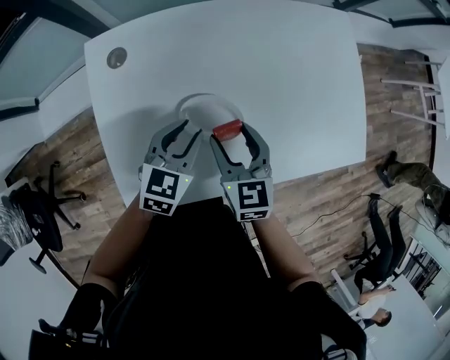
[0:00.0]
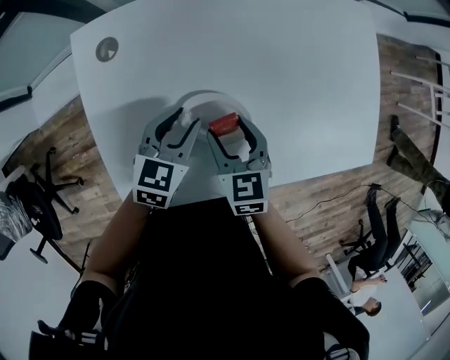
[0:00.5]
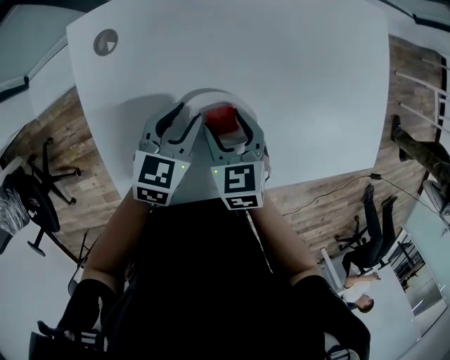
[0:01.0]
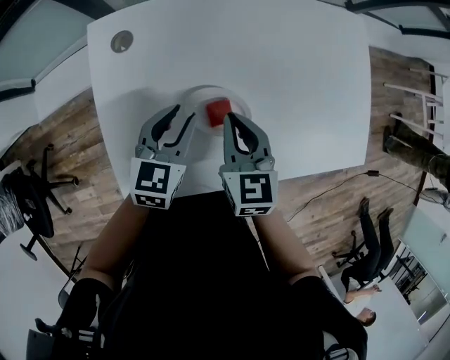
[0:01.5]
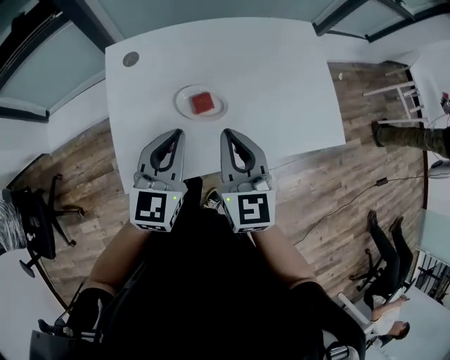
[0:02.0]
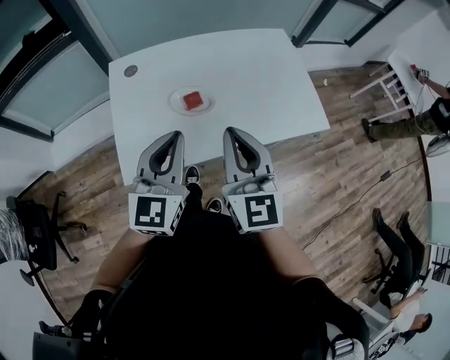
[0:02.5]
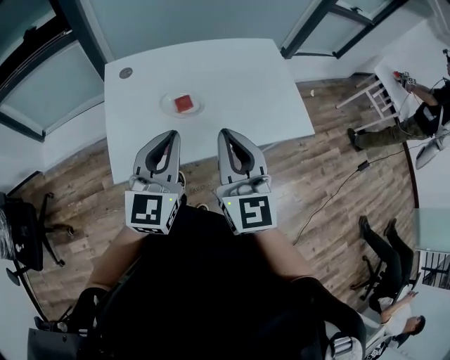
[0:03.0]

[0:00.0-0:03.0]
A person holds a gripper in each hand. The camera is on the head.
0:00.0 to 0:01.5: The right gripper moves about 5 cm downward and comes back, and closes up.
0:01.5 to 0:03.0: The grippers both shift backward and upward by approximately 30 cm. The left gripper angles its fingers upward, by about 30 degrees, and closes its fingers. Meanwhile the right gripper tilts its fingers some 30 degrees upward.

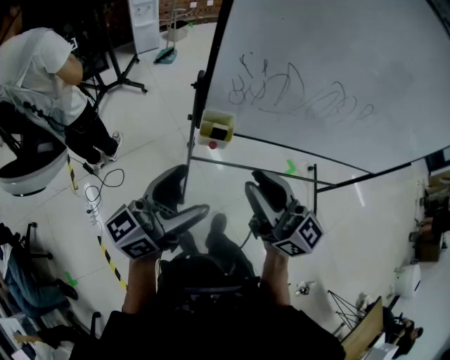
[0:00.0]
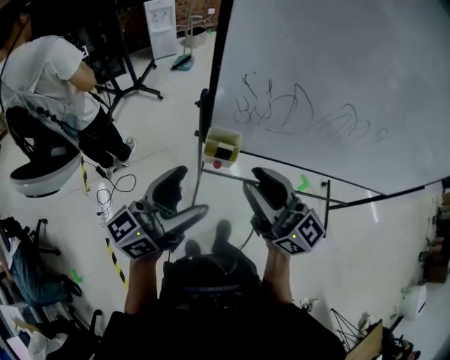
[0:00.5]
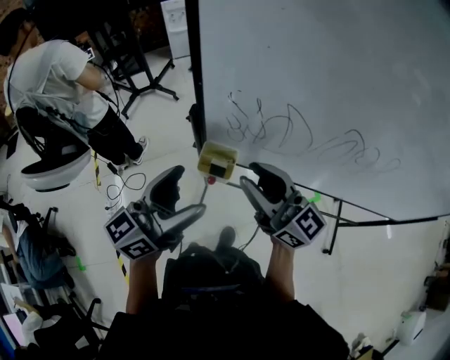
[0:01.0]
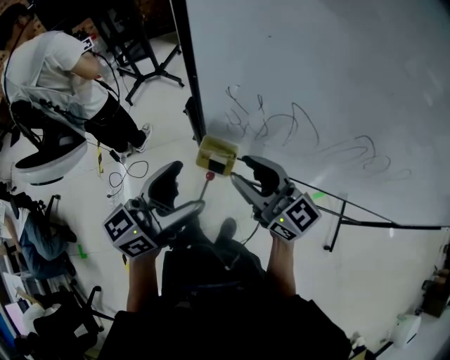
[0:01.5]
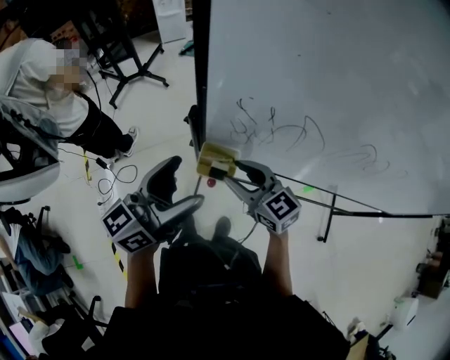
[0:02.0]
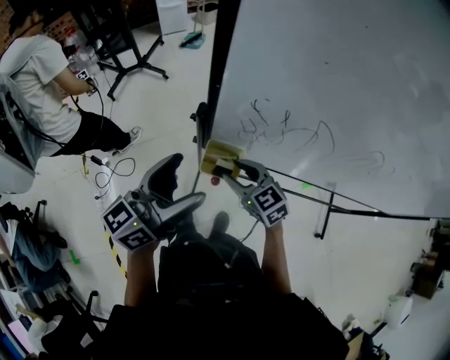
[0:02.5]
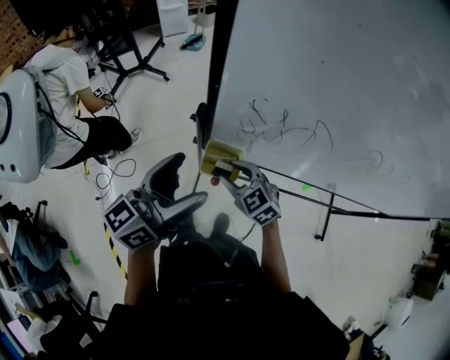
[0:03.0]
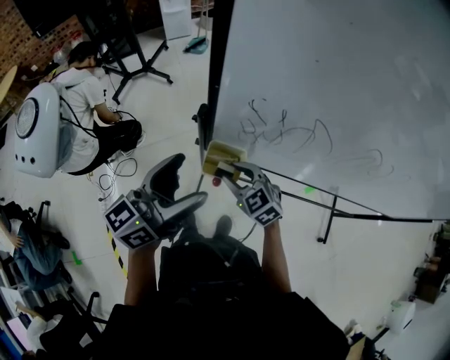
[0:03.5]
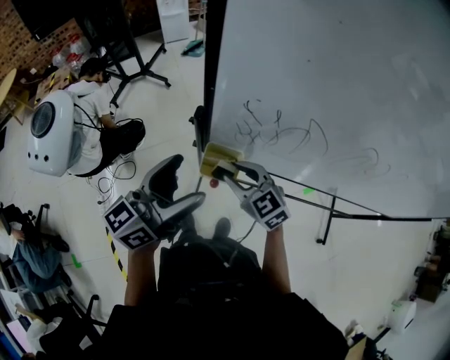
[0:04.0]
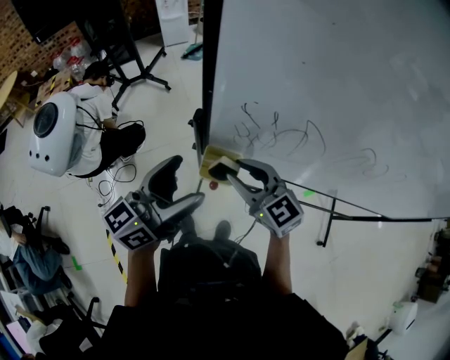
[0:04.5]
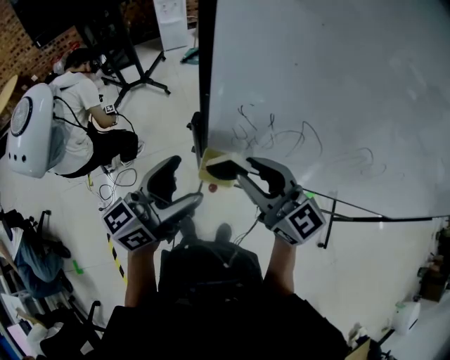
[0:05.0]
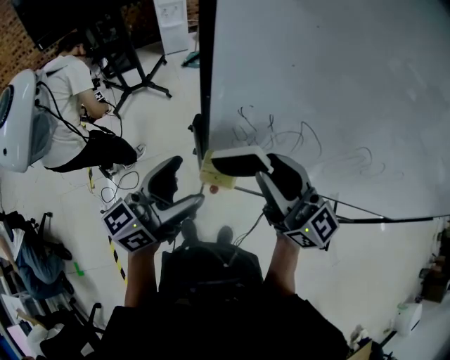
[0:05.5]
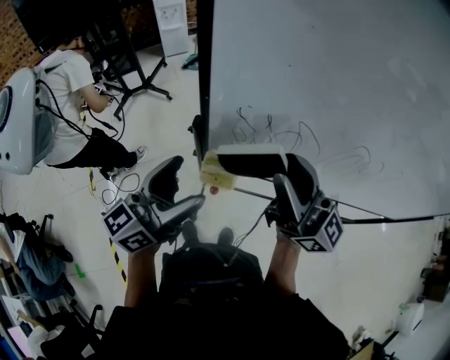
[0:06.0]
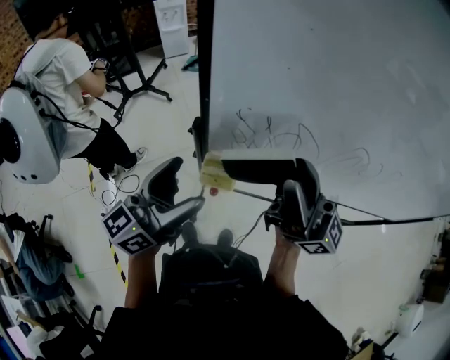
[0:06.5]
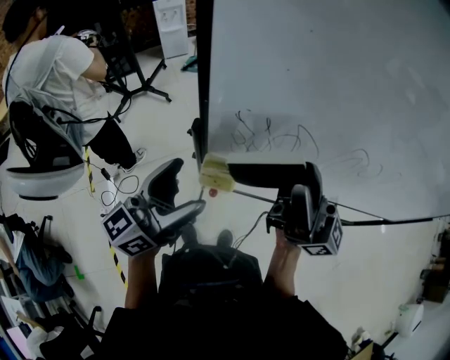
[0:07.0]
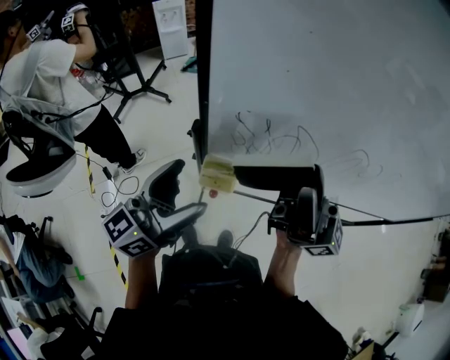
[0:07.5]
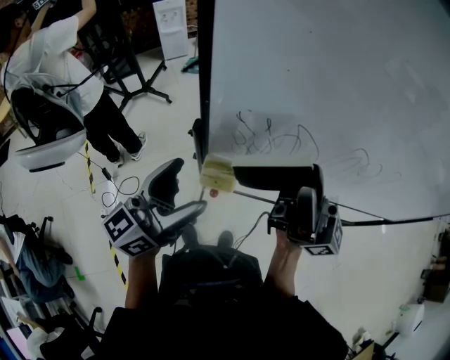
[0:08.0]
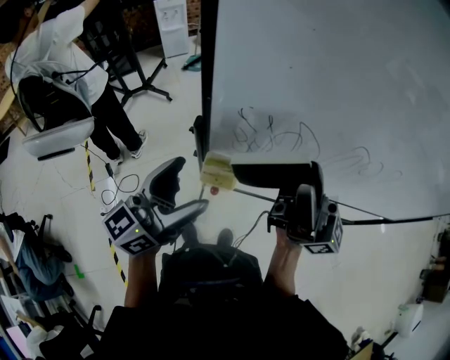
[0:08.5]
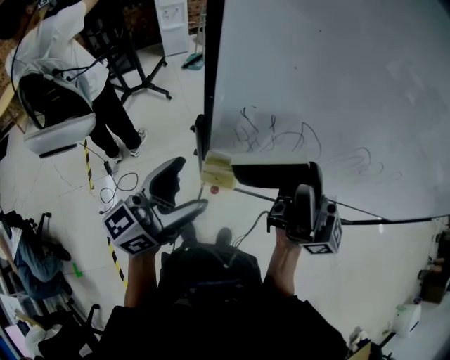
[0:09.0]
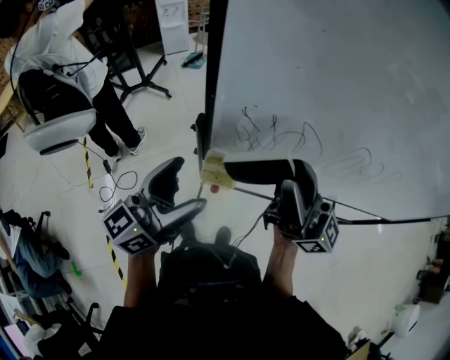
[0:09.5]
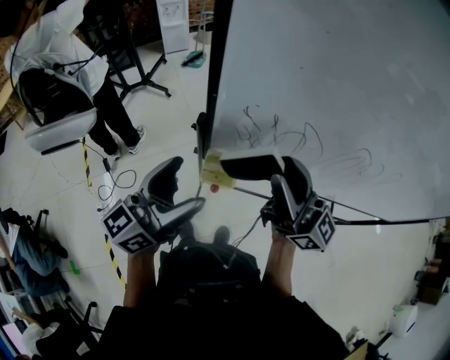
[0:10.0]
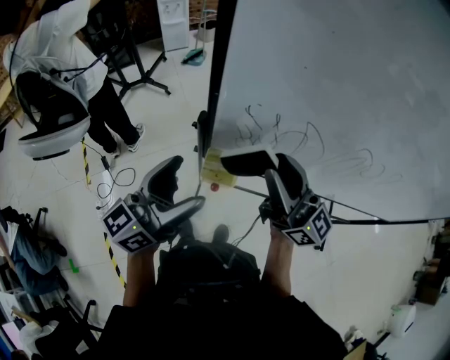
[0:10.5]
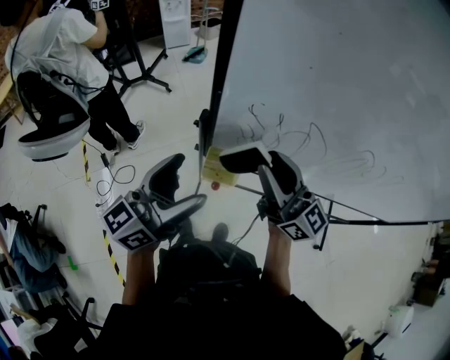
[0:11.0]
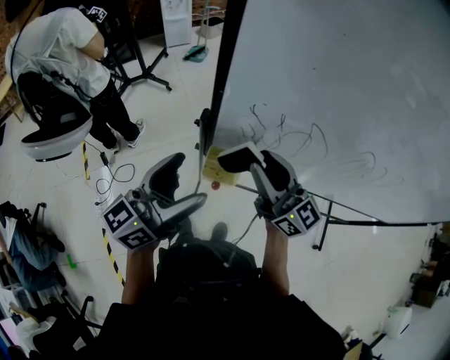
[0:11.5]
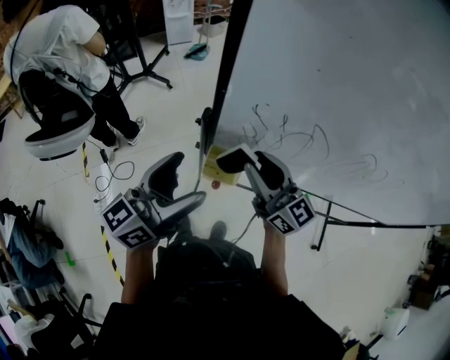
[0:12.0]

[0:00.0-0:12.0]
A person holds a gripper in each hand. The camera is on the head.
0:00.0 to 0:02.0: The left gripper travels forward by approximately 15 cm; the right gripper travels forward and downward by some 25 cm, and angles its fingers downward, by about 30 degrees.
0:04.0 to 0:06.0: The right gripper goes about 25 cm upward, and angles its fingers upward, by about 60 degrees.
0:06.0 to 0:08.0: The right gripper changes place by roughly 5 cm.
0:08.0 to 0:10.0: The right gripper shifts some 5 cm downward.
0:10.0 to 0:12.0: The right gripper travels downward by approximately 10 cm, and changes its angle by about 20 degrees.

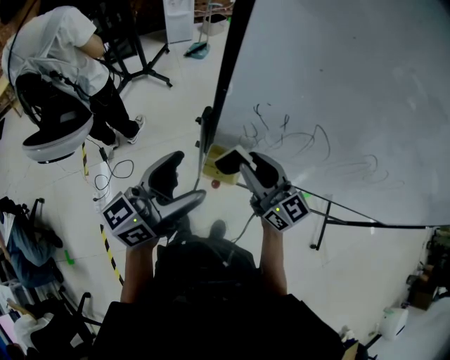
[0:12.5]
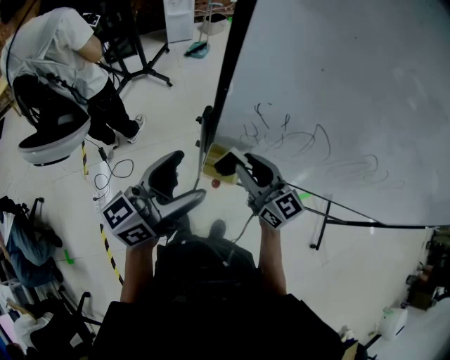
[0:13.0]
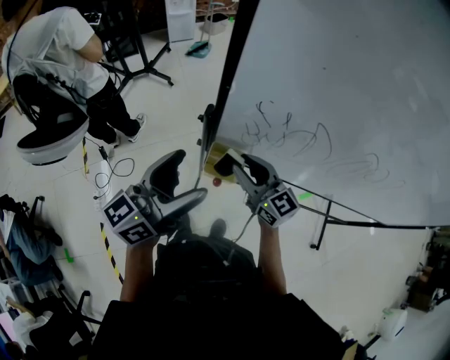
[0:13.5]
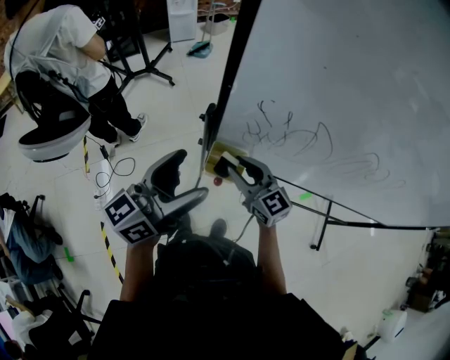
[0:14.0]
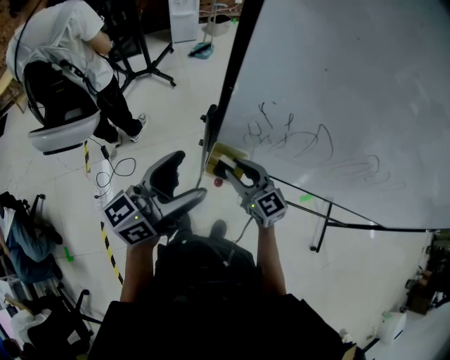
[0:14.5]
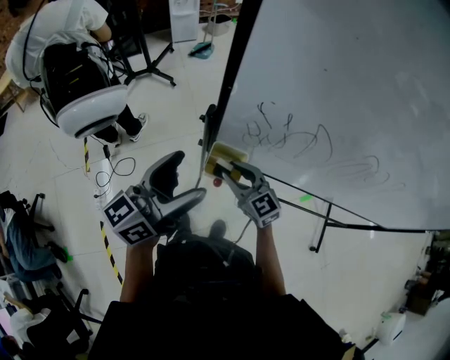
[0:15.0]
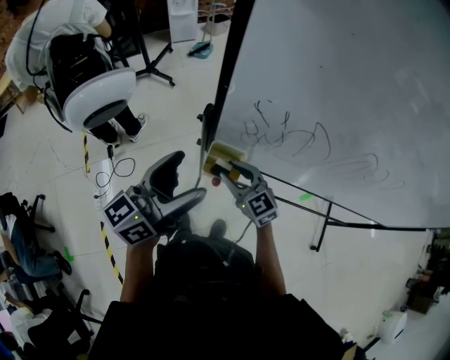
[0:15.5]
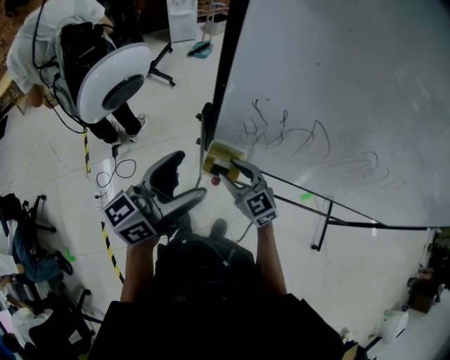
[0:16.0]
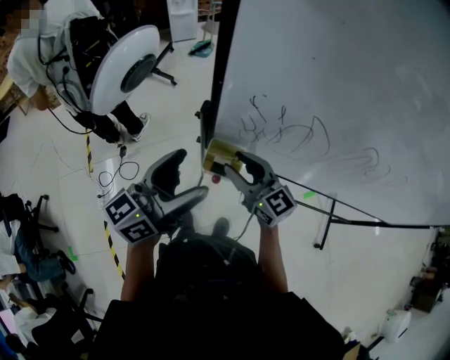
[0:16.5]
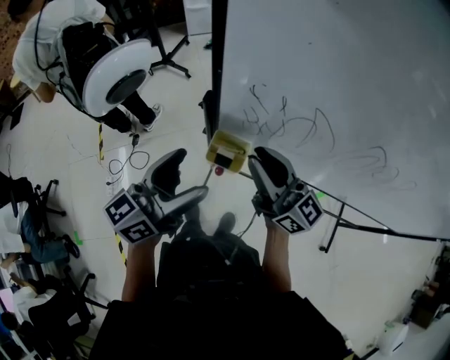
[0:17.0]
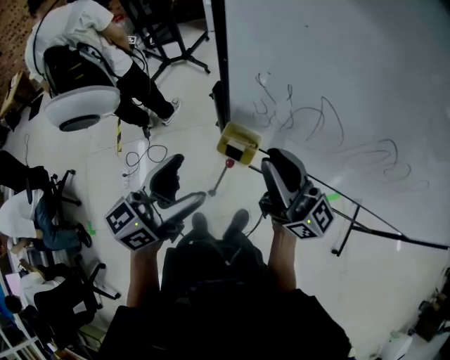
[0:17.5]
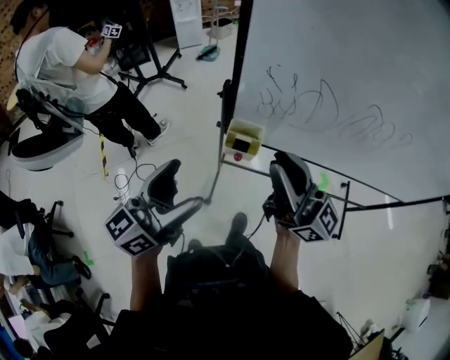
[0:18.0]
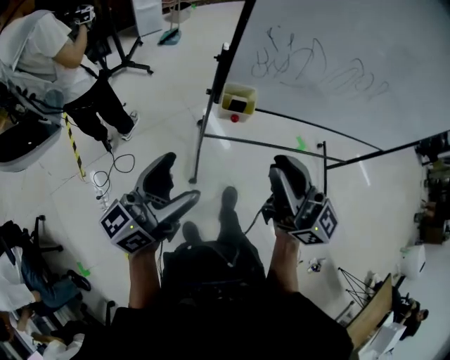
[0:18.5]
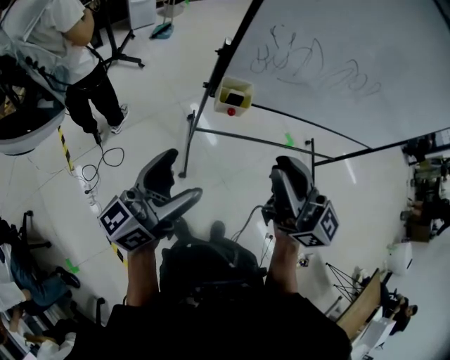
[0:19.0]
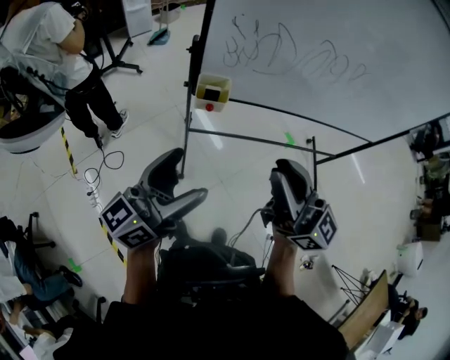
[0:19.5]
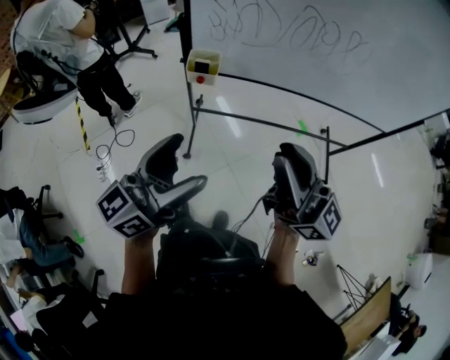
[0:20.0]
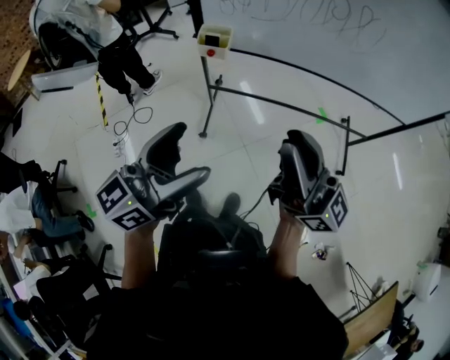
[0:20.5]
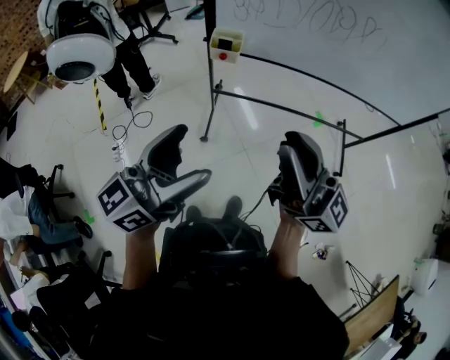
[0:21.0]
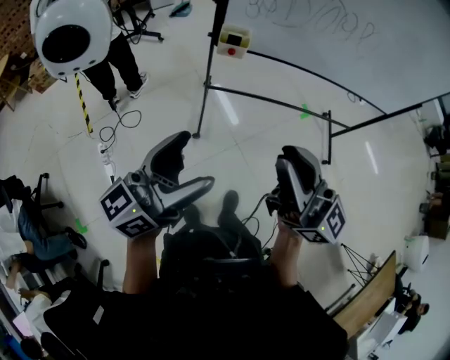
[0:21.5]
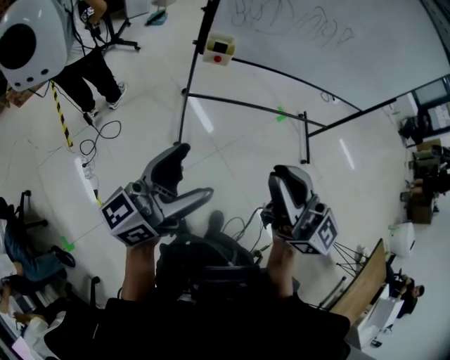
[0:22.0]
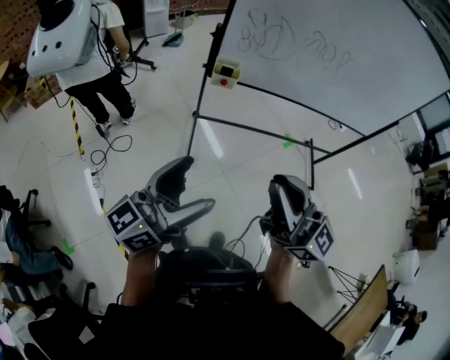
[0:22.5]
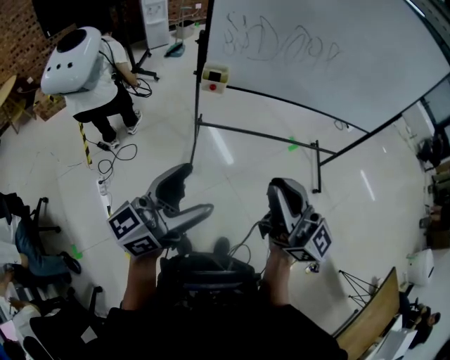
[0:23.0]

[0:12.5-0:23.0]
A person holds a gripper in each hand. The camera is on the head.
0:12.5 to 0:14.5: The right gripper heads downward, covering about 10 cm.
0:14.5 to 0:16.5: The right gripper shifts roughly 5 cm upward.
0:16.5 to 0:19.0: The right gripper moves backward and upward, approximately 35 cm, swivels approximately 30 degrees, and closes its fingers. The left gripper travels backward and to the left by about 25 cm.
0:19.0 to 0:21.0: The right gripper is displaced to the right and backward by approximately 25 cm, while the left gripper shifts roughly 25 cm backward and to the right.
0:21.0 to 0:23.0: Both grippers move backward, some 10 cm. The left gripper goes to the left and returns, some 10 cm each way, while the right gripper goes to the left and returns, some 15 cm each way.

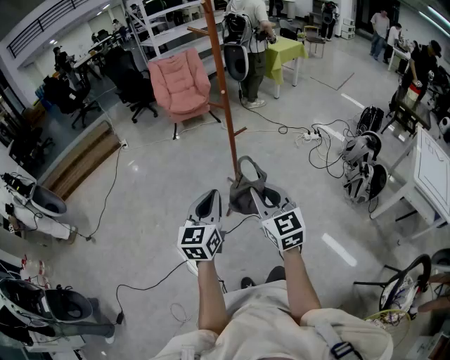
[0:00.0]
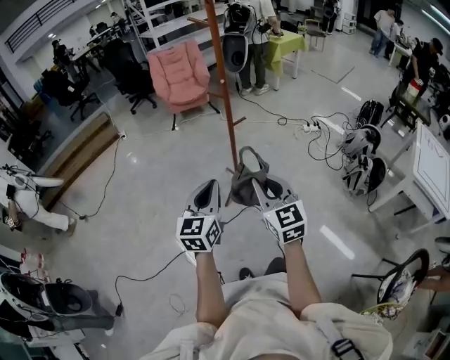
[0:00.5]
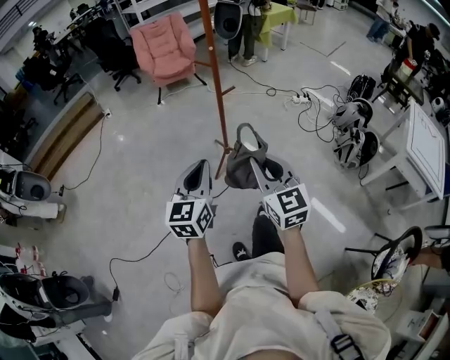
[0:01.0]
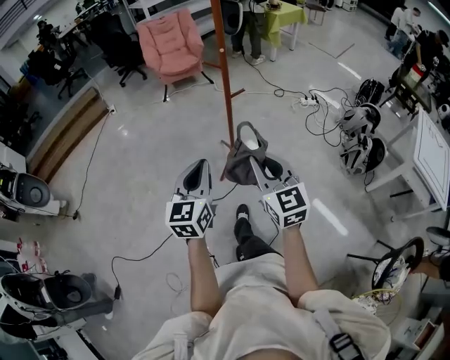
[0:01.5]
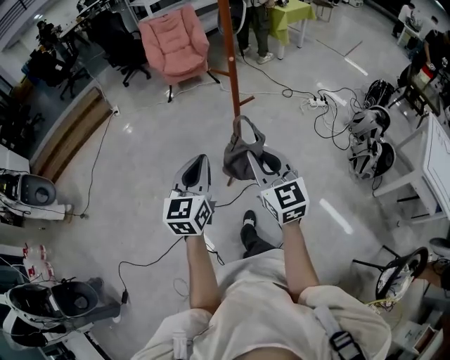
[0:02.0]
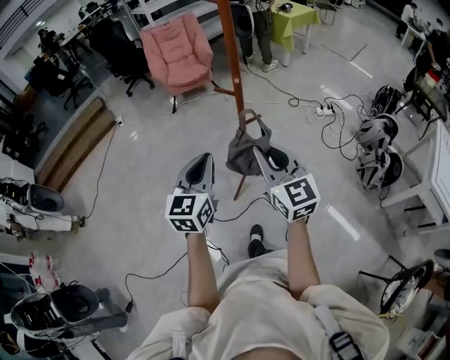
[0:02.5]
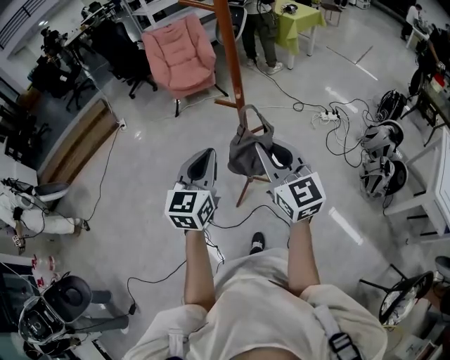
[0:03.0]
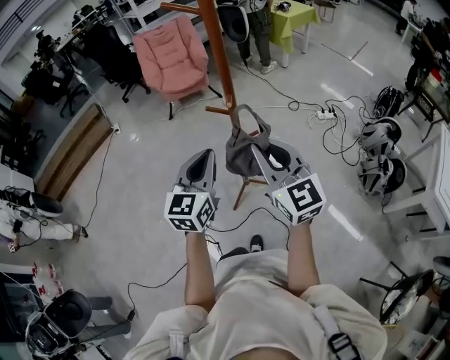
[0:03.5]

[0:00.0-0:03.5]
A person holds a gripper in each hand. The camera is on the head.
0:00.0 to 0:02.0: Both grippers move forward, roughly 10 cm.
0:02.0 to 0:03.5: Both grippers travel together forward, some 15 cm.
